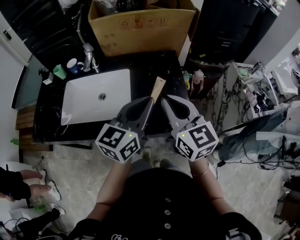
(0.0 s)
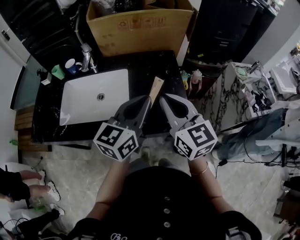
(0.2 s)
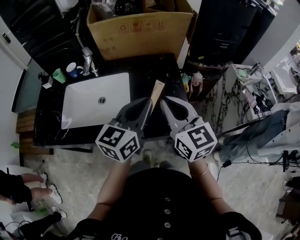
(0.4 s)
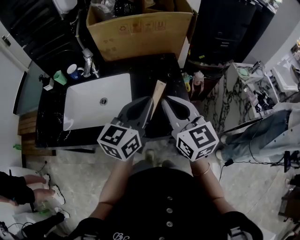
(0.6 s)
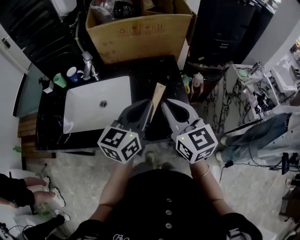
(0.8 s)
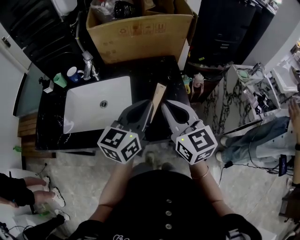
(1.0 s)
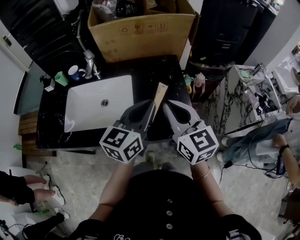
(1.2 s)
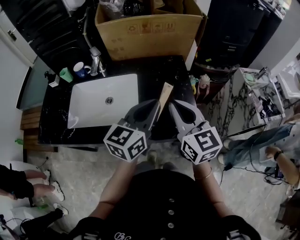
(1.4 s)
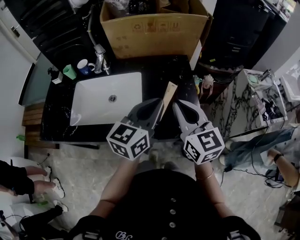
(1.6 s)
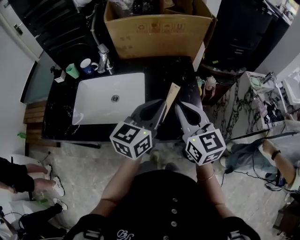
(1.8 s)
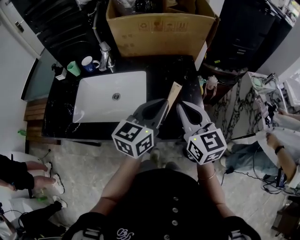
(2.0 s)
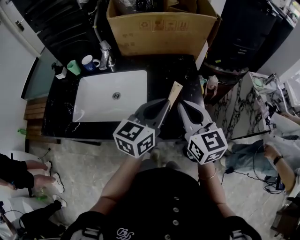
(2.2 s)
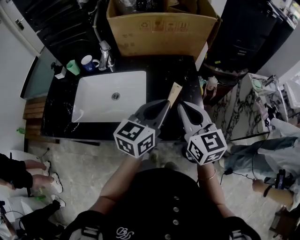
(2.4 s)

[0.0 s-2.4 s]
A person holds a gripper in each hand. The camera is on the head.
0.0 to 2.4 s: The grippers make only small movements.

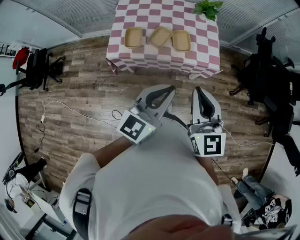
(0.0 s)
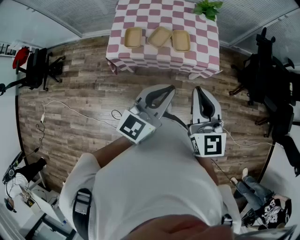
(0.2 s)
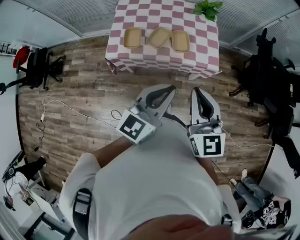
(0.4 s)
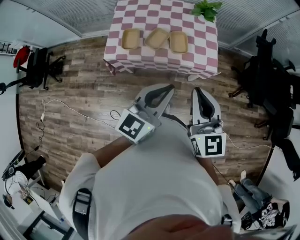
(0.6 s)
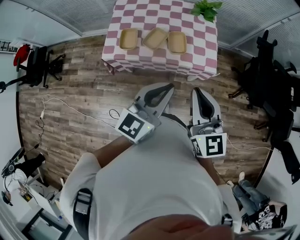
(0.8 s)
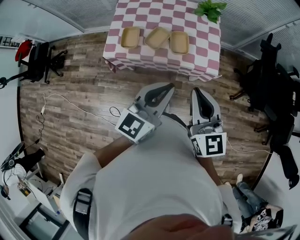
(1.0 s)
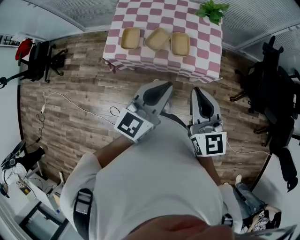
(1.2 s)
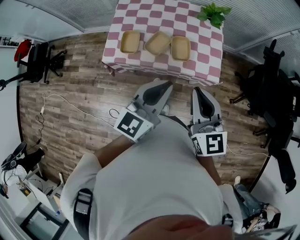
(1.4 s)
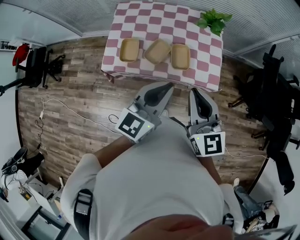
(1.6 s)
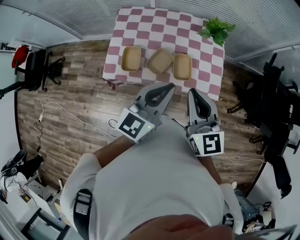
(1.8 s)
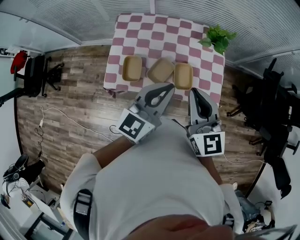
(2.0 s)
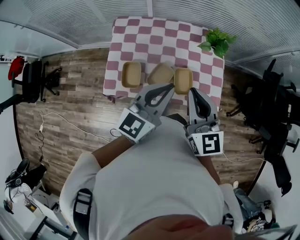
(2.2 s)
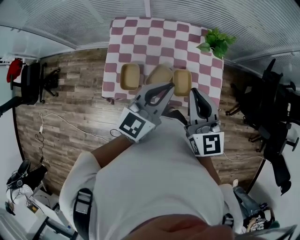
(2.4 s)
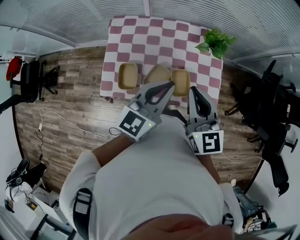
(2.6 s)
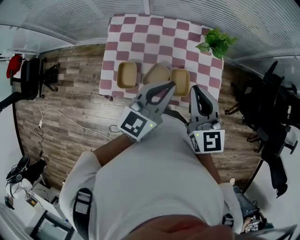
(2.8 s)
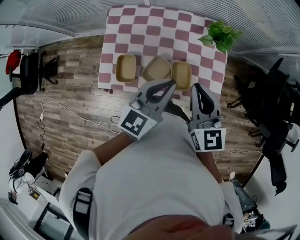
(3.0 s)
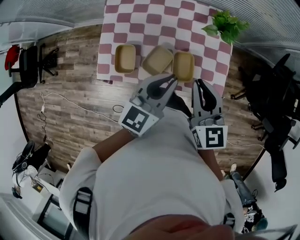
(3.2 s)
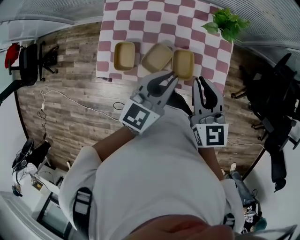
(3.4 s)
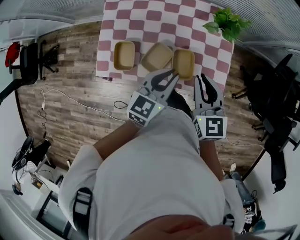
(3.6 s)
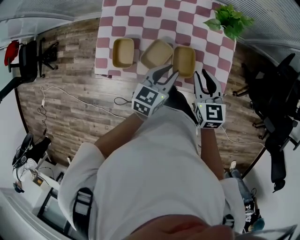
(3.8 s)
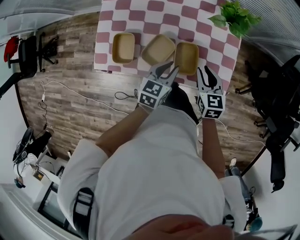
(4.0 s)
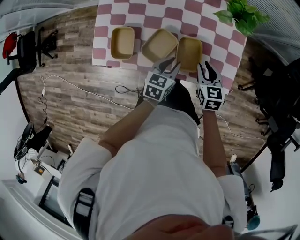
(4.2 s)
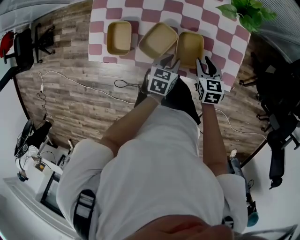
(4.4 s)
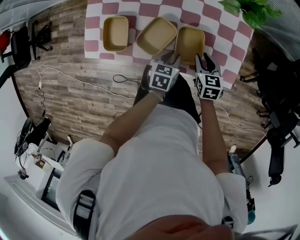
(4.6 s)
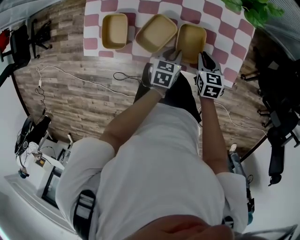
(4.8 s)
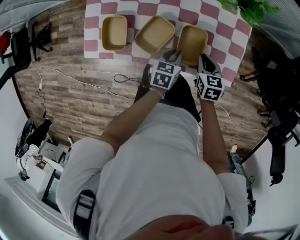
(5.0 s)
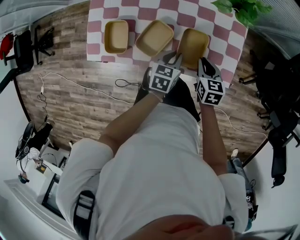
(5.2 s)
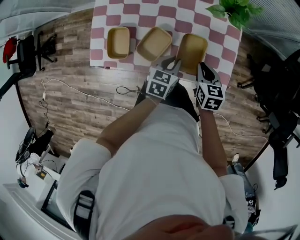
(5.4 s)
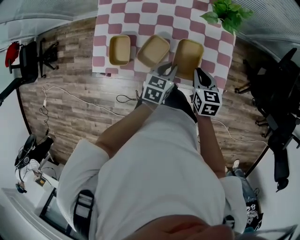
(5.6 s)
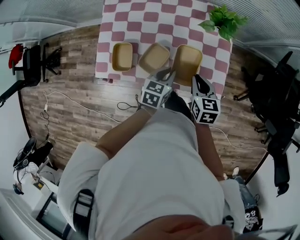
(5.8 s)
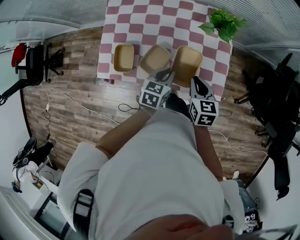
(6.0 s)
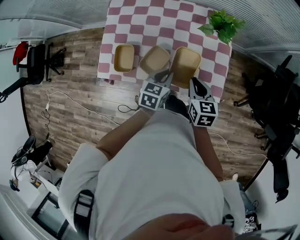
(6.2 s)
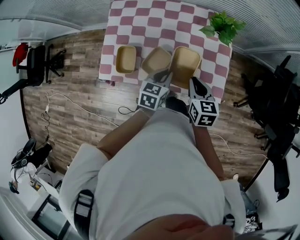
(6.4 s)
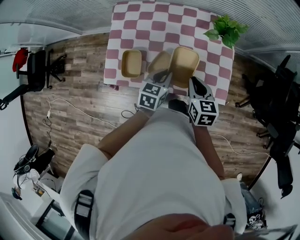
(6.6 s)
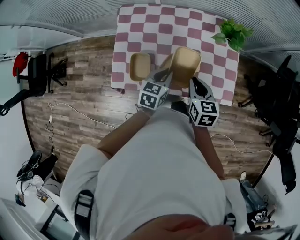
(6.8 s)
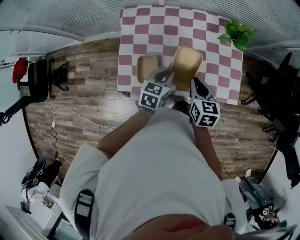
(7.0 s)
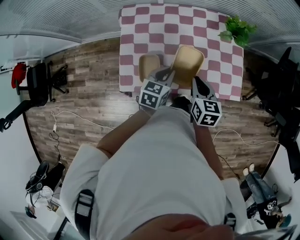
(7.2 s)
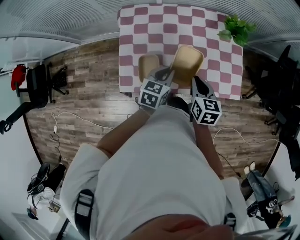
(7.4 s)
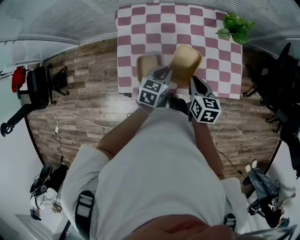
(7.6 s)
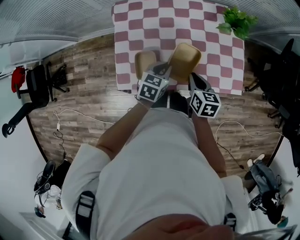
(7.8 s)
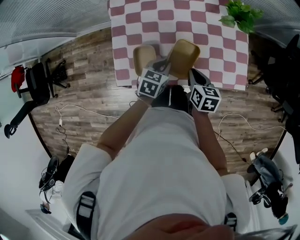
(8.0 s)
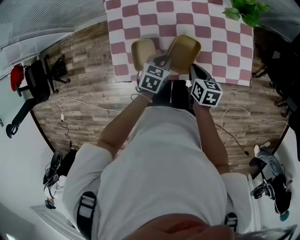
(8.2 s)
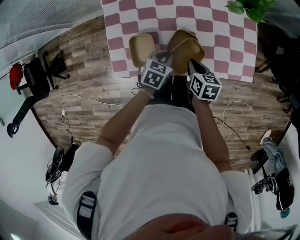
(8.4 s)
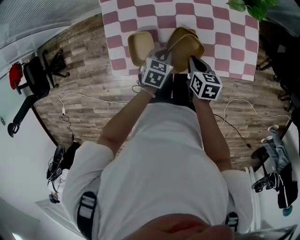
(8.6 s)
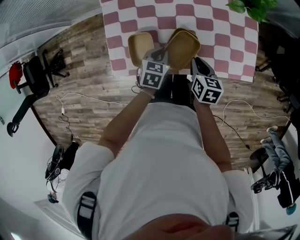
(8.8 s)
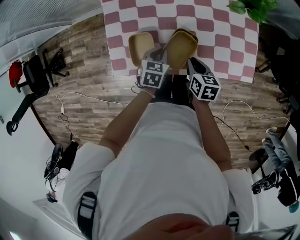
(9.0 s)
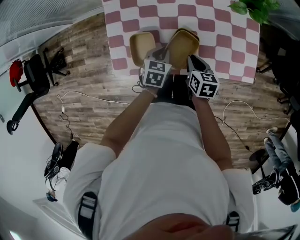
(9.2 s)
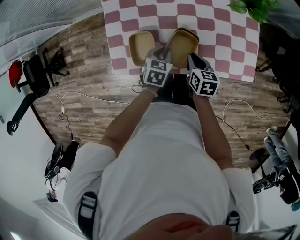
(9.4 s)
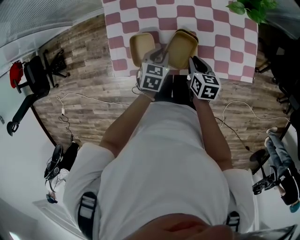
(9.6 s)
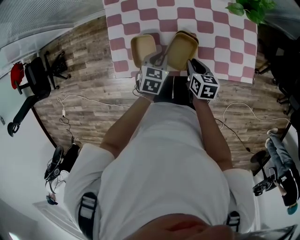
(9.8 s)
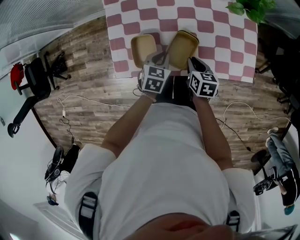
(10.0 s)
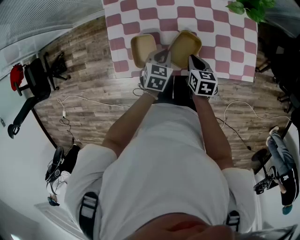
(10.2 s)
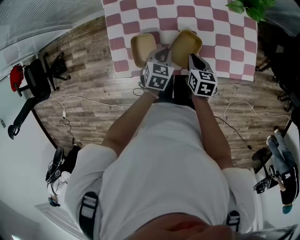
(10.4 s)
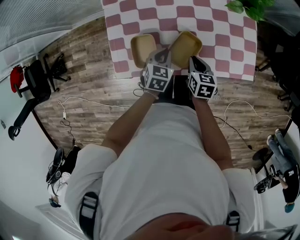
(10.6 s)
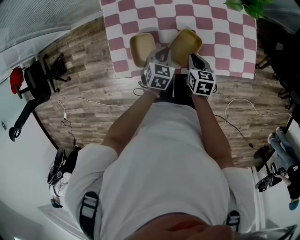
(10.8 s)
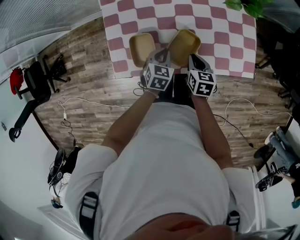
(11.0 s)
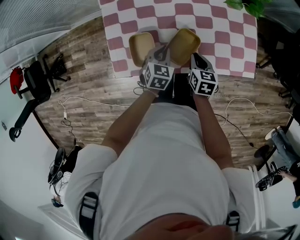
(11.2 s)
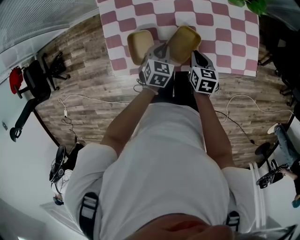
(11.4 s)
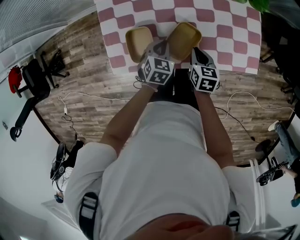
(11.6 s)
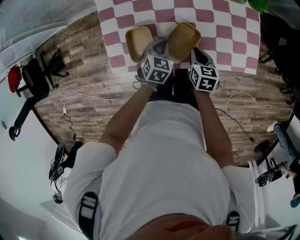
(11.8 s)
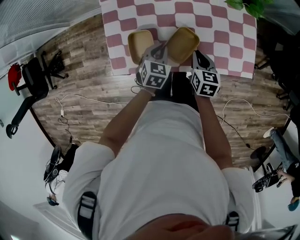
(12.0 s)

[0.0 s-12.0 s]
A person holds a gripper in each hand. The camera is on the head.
0.0 to 1.6 s: The grippers both shift forward by roughly 15 cm.
1.6 to 3.0 s: The two grippers go approximately 20 cm forward.
3.0 to 4.4 s: Both grippers travel together downward, some 35 cm. The right gripper points its fingers roughly 30 degrees further downward, and opens its fingers; the left gripper tilts its fingers some 40 degrees downward.
4.4 to 6.0 s: Both grippers move upward, about 15 cm.
6.0 to 7.6 s: The two grippers go about 15 cm to the left.
7.6 to 9.0 s: Both grippers move downward, some 15 cm.
9.0 to 12.0 s: The grippers make only small movements.

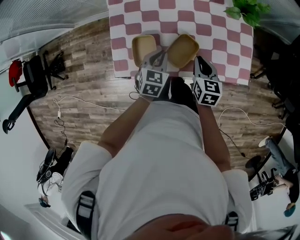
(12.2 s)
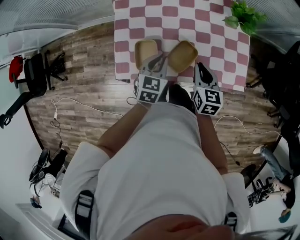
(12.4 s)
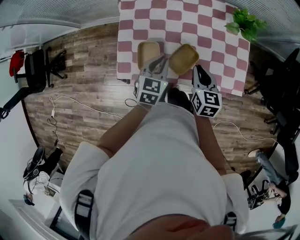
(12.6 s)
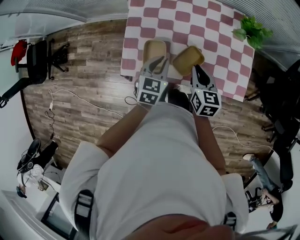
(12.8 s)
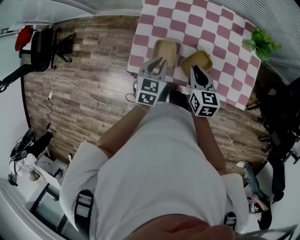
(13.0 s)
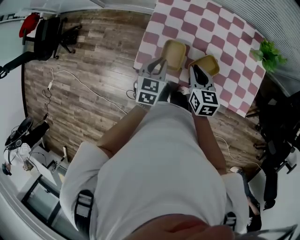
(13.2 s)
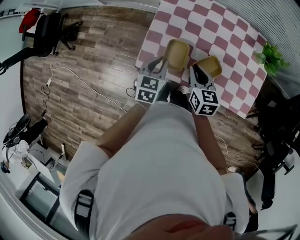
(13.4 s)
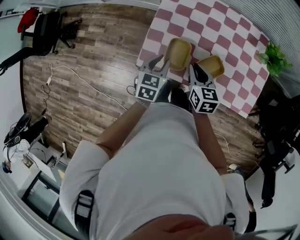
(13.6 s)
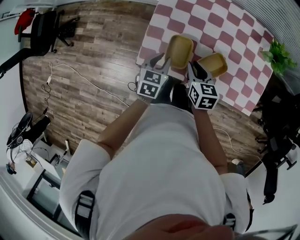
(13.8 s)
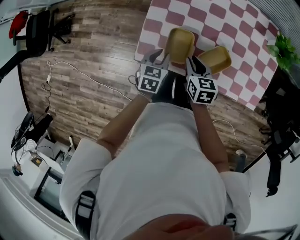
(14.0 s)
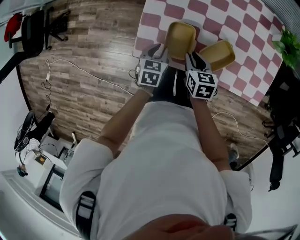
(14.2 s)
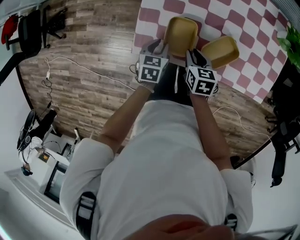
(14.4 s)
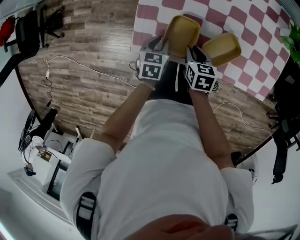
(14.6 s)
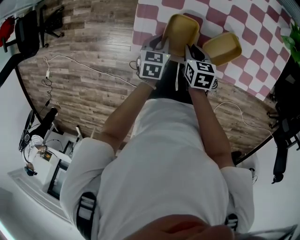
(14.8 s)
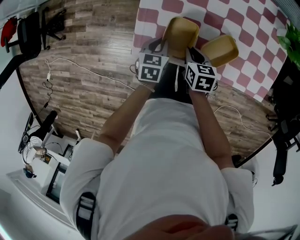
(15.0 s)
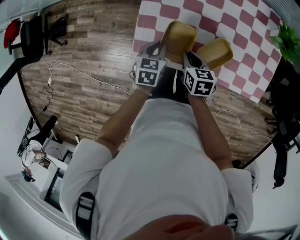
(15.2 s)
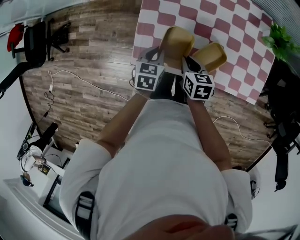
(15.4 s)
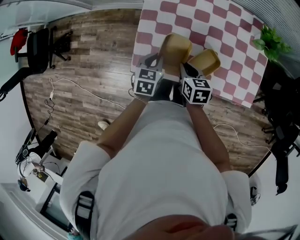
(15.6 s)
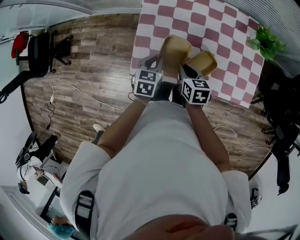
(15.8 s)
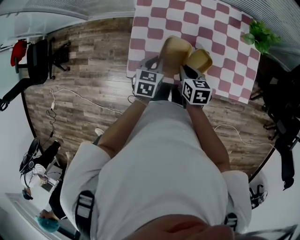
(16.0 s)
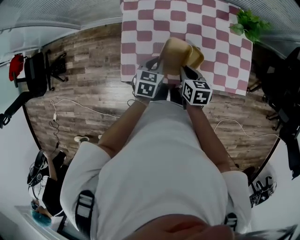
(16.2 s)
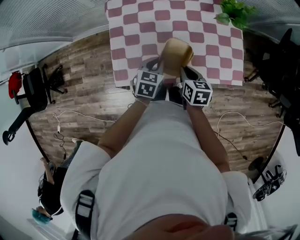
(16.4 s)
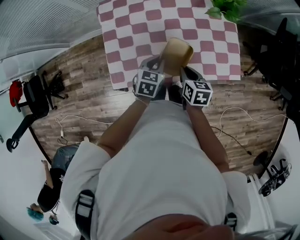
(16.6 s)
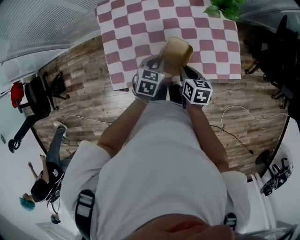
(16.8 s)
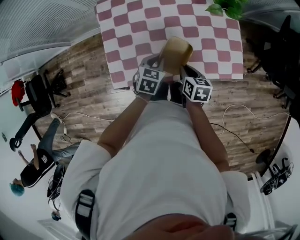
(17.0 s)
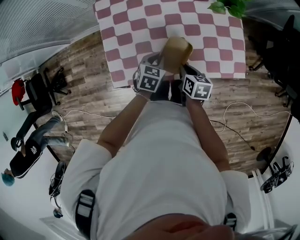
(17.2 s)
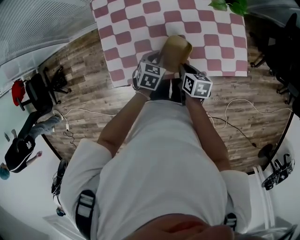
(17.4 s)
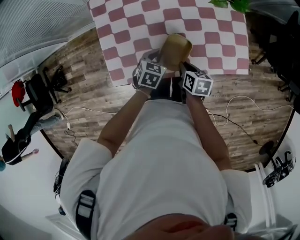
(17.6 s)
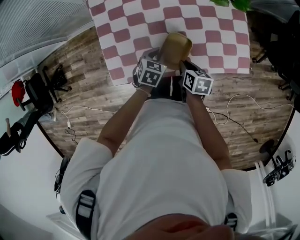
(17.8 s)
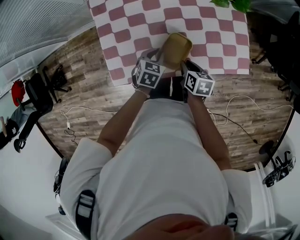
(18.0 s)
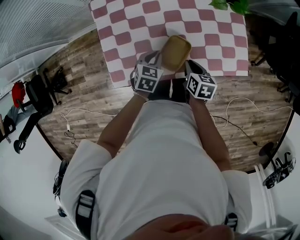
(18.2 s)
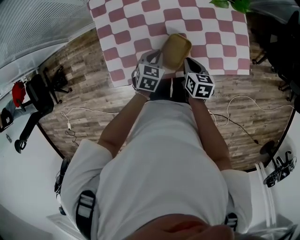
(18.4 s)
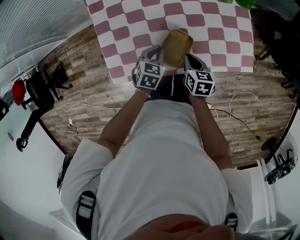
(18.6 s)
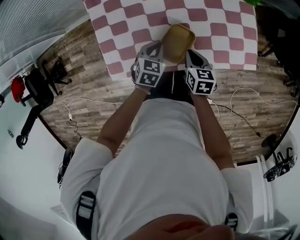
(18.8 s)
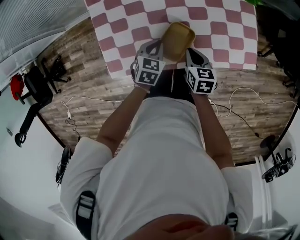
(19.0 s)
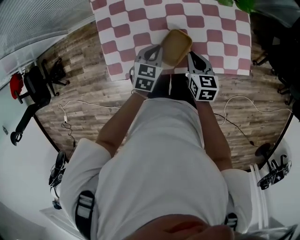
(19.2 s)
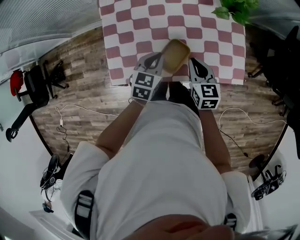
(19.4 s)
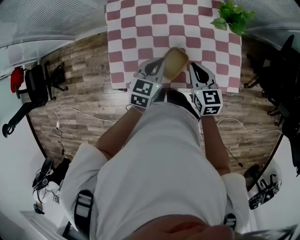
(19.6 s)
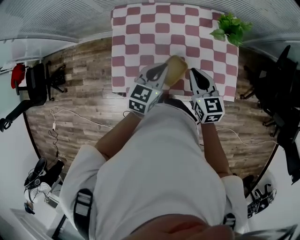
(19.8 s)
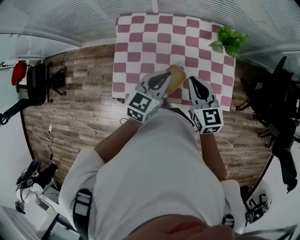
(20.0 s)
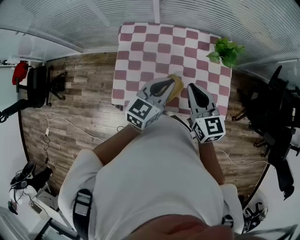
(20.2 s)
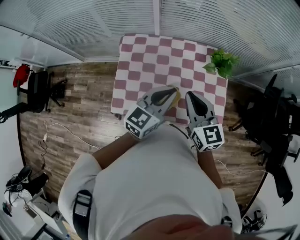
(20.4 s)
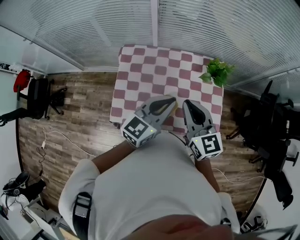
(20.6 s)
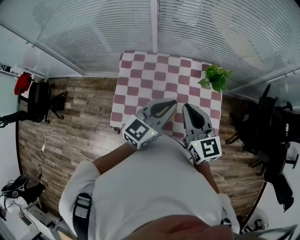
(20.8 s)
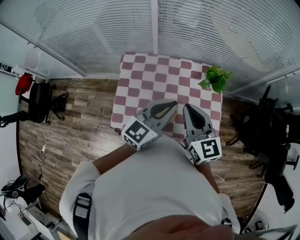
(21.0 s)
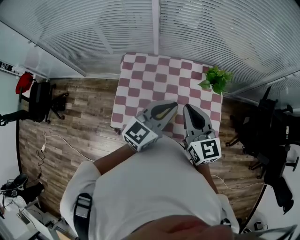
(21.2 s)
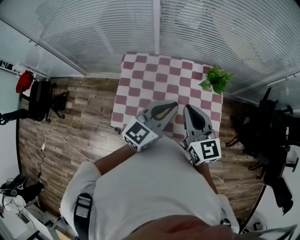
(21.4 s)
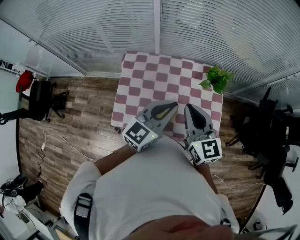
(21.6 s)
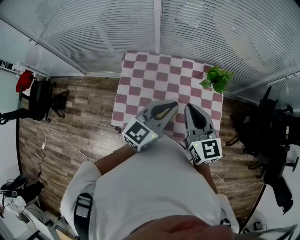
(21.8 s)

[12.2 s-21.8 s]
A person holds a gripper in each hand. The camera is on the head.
12.2 to 13.8 s: The grippers both shift to the left by approximately 15 cm. The right gripper changes its angle by roughly 20 degrees.
13.8 to 15.4 s: The left gripper goes downward and returns, roughly 10 cm each way.
15.4 to 17.0 s: The grippers both shift to the right by roughly 15 cm. The right gripper swivels roughly 20 degrees, while the left gripper rotates roughly 20 degrees.
17.0 to 18.6 s: Both grippers move downward, some 5 cm.
18.6 to 20.2 s: The two grippers go about 30 cm upward. The right gripper tilts its fingers roughly 30 degrees upward, while the left gripper points its fingers about 40 degrees further upward.
20.2 to 21.8 s: The two grippers go approximately 10 cm upward.
